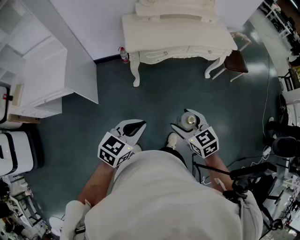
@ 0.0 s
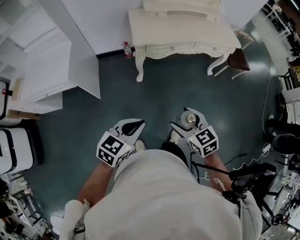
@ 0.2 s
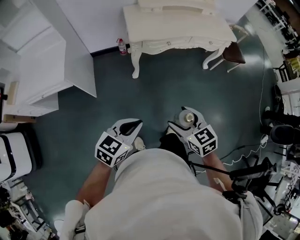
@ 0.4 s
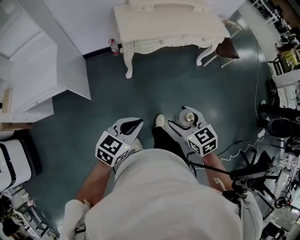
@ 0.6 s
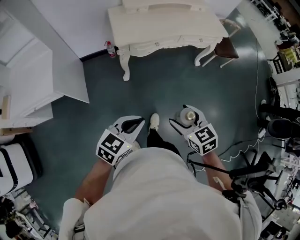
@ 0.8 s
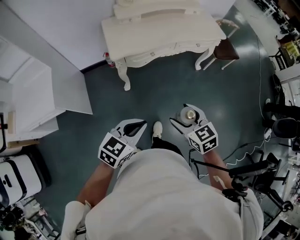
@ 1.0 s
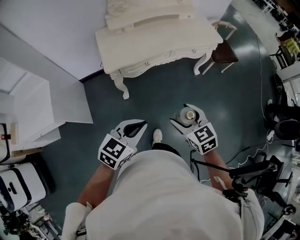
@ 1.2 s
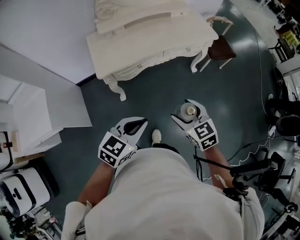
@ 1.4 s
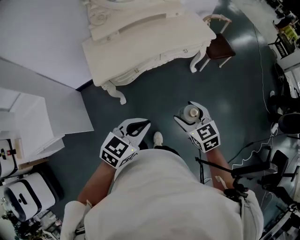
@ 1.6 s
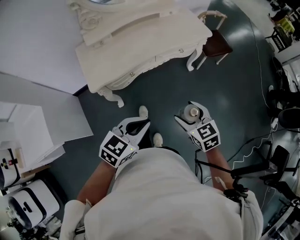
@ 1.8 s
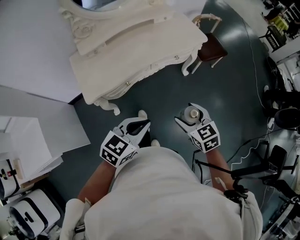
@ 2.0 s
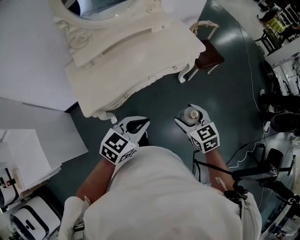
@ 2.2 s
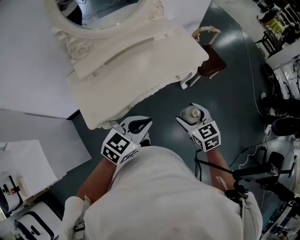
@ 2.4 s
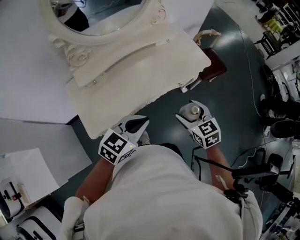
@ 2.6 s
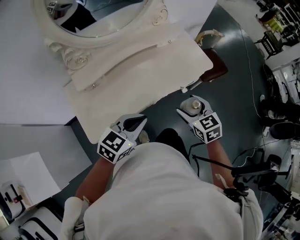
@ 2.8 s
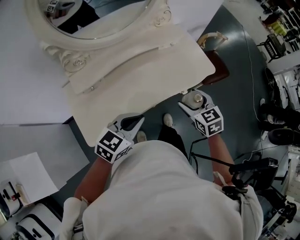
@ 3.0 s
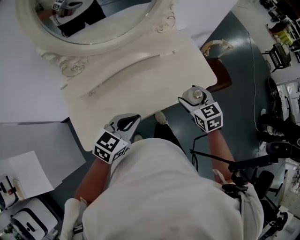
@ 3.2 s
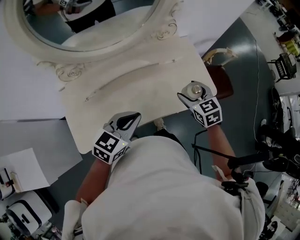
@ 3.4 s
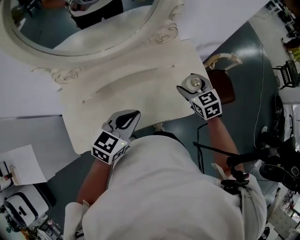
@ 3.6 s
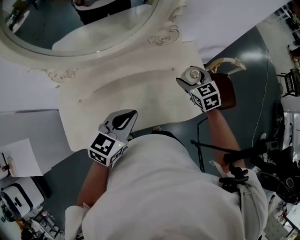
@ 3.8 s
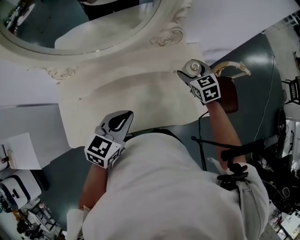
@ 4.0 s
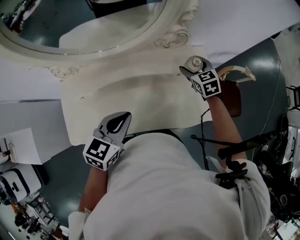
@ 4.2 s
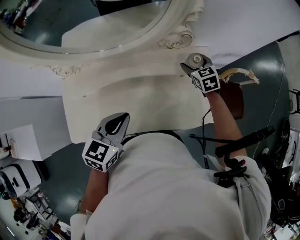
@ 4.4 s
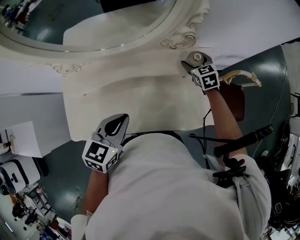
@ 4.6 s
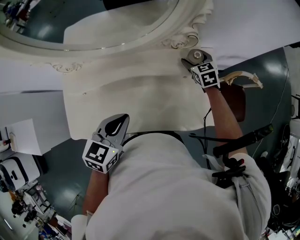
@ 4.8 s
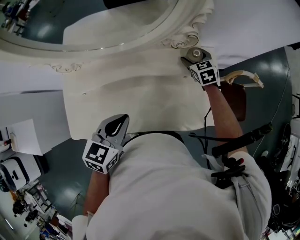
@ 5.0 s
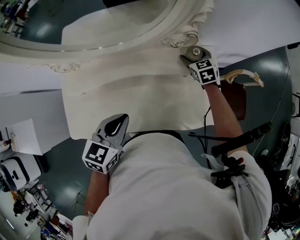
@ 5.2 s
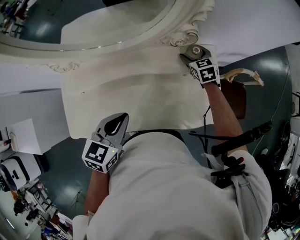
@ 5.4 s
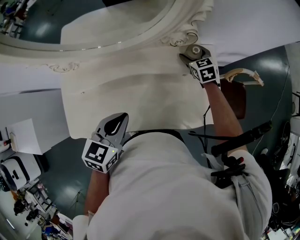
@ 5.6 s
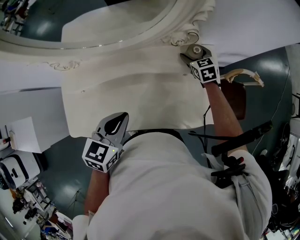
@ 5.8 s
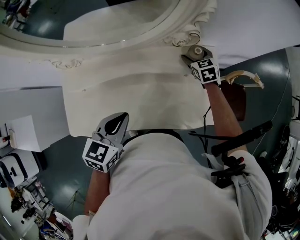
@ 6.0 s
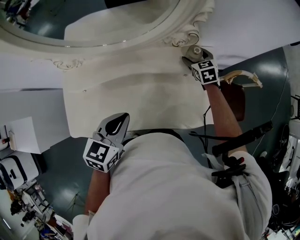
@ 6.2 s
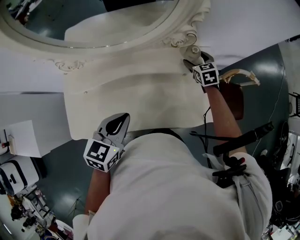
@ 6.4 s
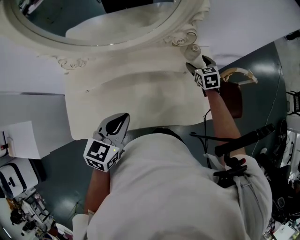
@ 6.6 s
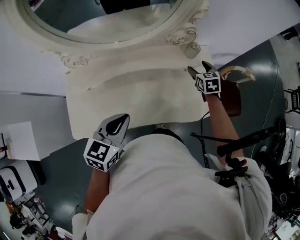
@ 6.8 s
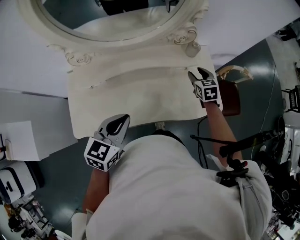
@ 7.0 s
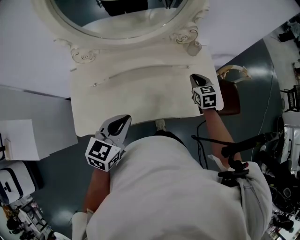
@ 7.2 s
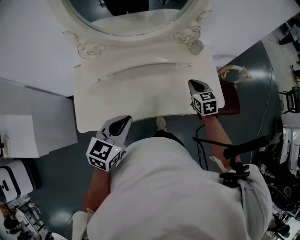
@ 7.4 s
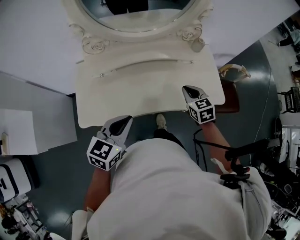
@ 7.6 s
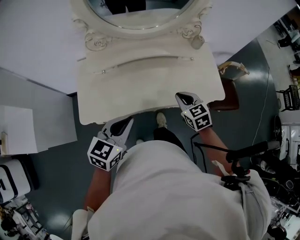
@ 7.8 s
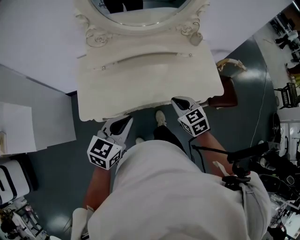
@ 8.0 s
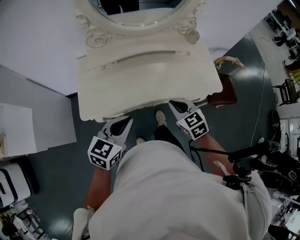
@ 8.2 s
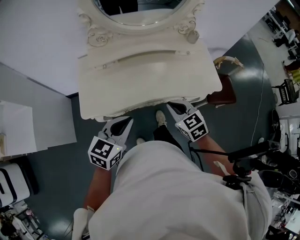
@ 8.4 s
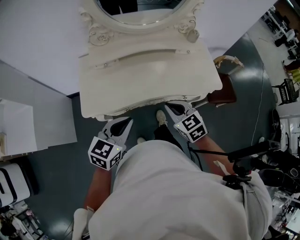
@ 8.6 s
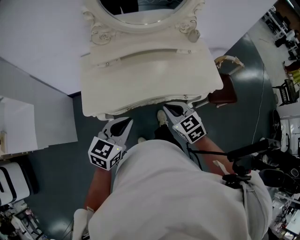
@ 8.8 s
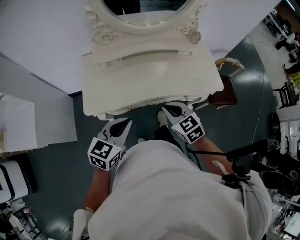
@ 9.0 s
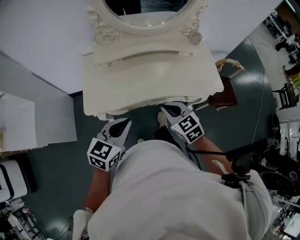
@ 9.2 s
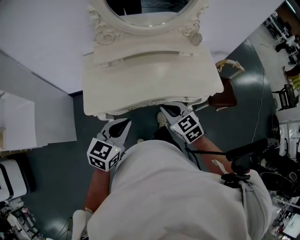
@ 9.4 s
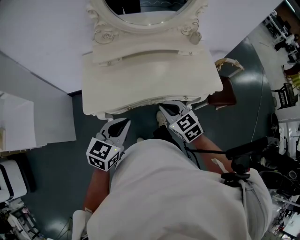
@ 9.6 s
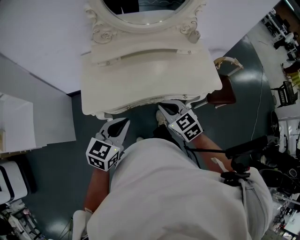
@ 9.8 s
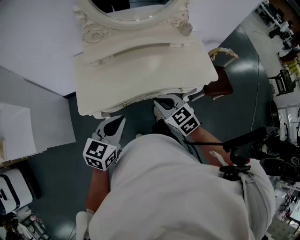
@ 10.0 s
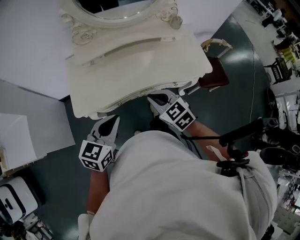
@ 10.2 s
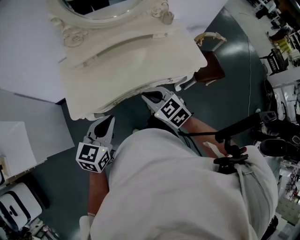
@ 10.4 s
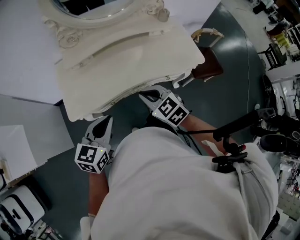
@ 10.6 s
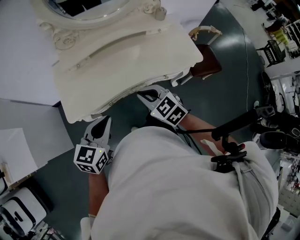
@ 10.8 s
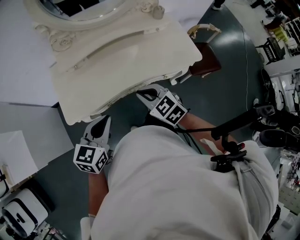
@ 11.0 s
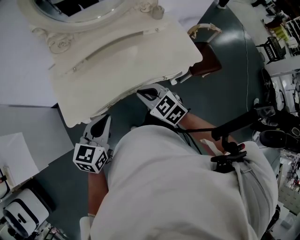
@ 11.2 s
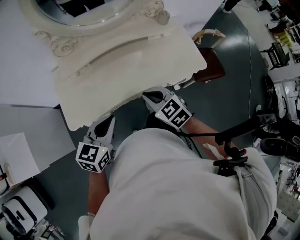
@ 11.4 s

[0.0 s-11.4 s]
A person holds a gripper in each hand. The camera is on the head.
0.0 to 1.4 s: Both grippers move forward and to the right, some 20 cm.
1.4 to 2.8 s: The grippers both shift forward by roughly 35 cm.
2.8 to 4.2 s: The right gripper shifts by approximately 50 cm, and changes its angle by approximately 20 degrees, while the left gripper shifts by about 25 cm, and turns by about 30 degrees.
4.2 to 5.6 s: The right gripper shifts approximately 10 cm forward and downward.
5.6 to 7.2 s: The right gripper travels backward by about 20 cm, and closes its fingers; the left gripper moves backward and to the left, roughly 15 cm.
7.2 to 8.6 s: The right gripper travels backward and to the left by some 40 cm, and turns by about 20 degrees. The left gripper shifts approximately 20 cm backward.
8.6 to 10.0 s: The grippers move only a little.
10.0 to 11.4 s: The grippers both shift forward by roughly 5 cm.

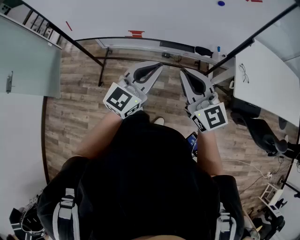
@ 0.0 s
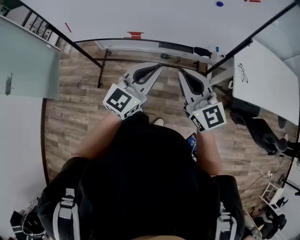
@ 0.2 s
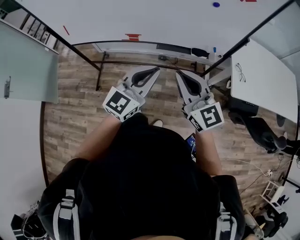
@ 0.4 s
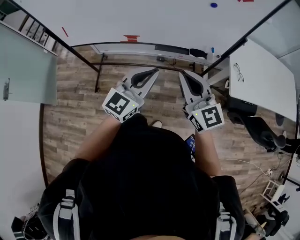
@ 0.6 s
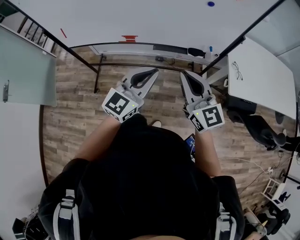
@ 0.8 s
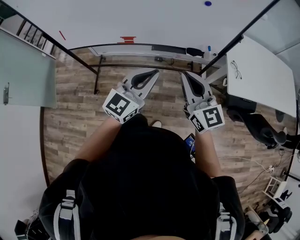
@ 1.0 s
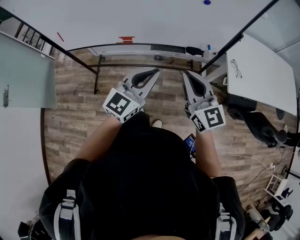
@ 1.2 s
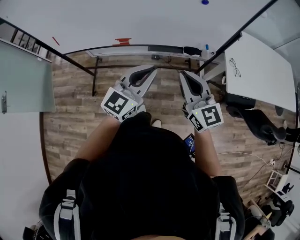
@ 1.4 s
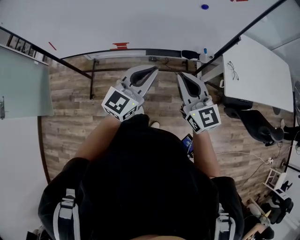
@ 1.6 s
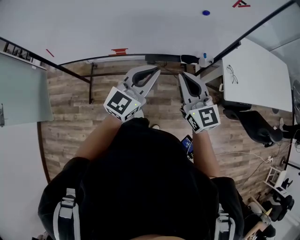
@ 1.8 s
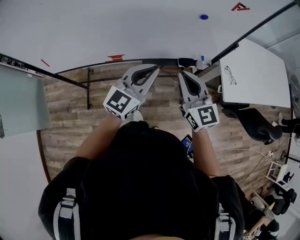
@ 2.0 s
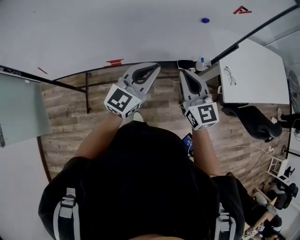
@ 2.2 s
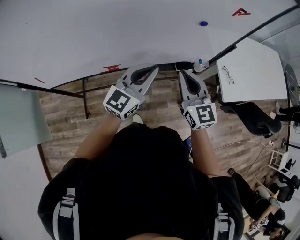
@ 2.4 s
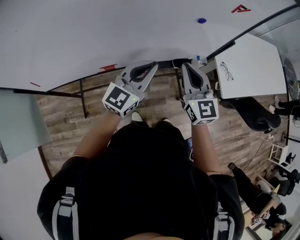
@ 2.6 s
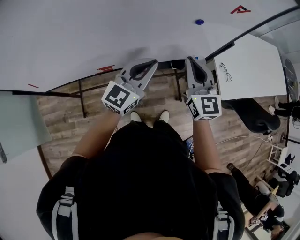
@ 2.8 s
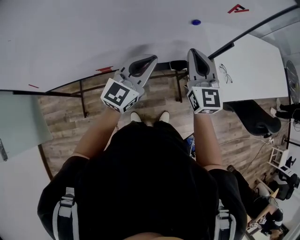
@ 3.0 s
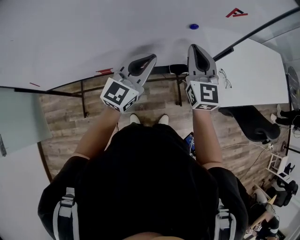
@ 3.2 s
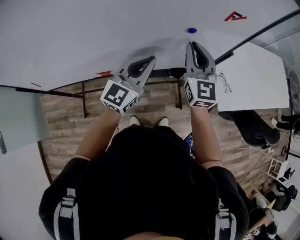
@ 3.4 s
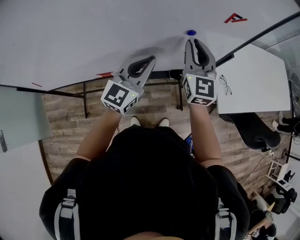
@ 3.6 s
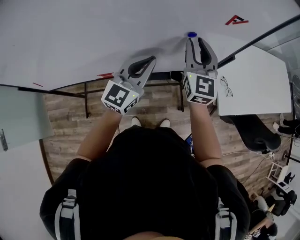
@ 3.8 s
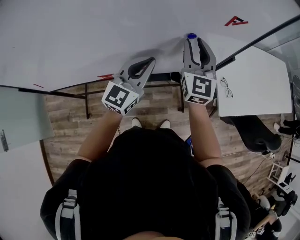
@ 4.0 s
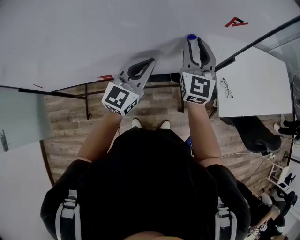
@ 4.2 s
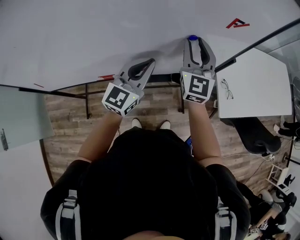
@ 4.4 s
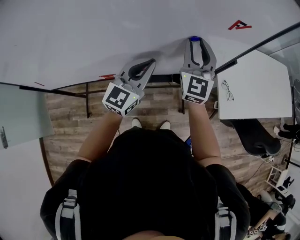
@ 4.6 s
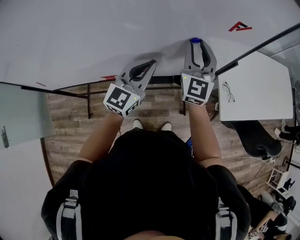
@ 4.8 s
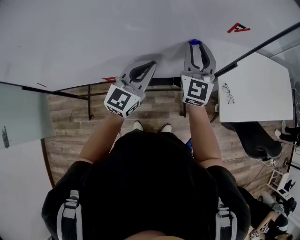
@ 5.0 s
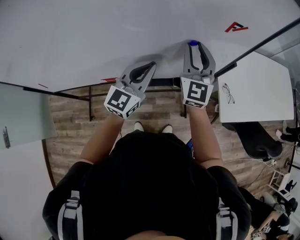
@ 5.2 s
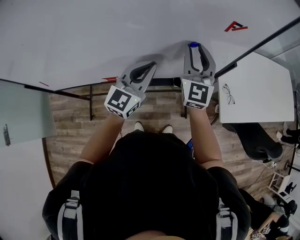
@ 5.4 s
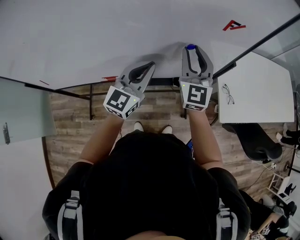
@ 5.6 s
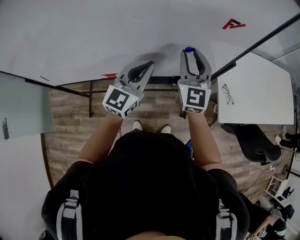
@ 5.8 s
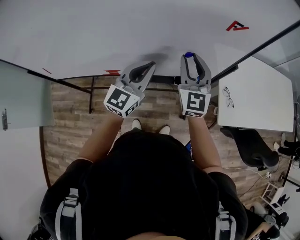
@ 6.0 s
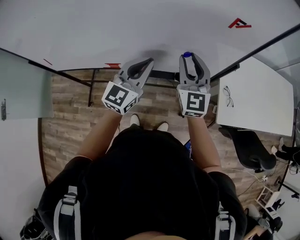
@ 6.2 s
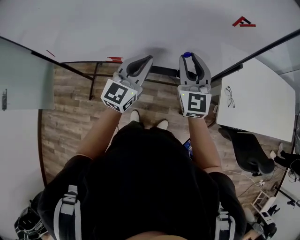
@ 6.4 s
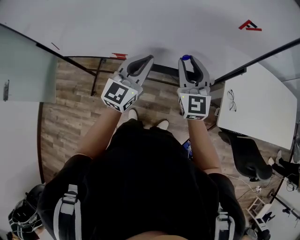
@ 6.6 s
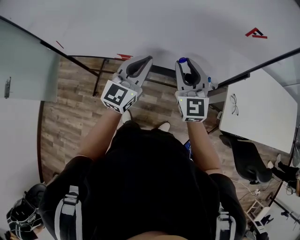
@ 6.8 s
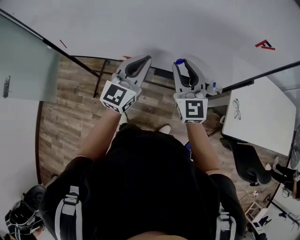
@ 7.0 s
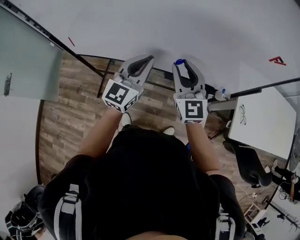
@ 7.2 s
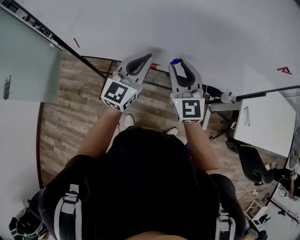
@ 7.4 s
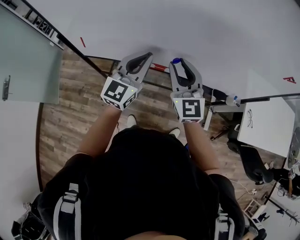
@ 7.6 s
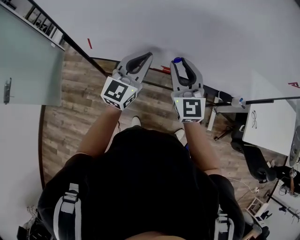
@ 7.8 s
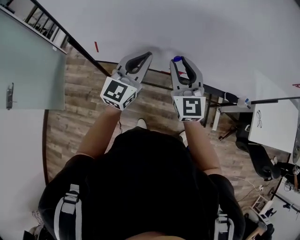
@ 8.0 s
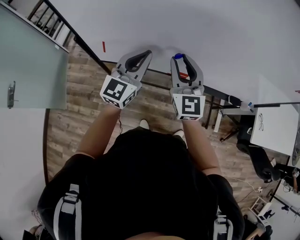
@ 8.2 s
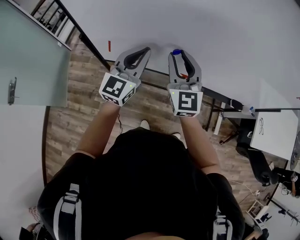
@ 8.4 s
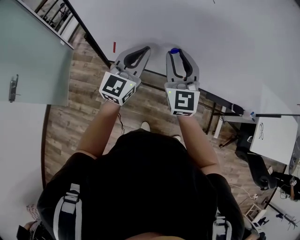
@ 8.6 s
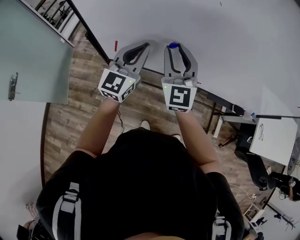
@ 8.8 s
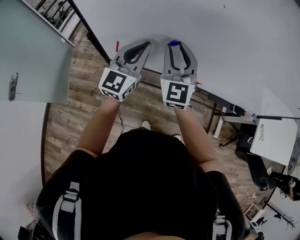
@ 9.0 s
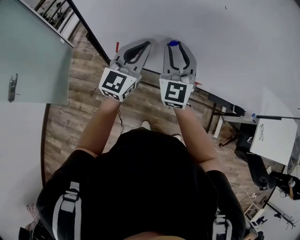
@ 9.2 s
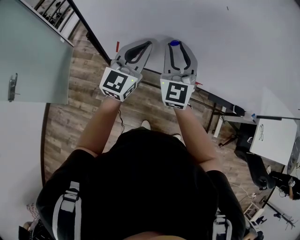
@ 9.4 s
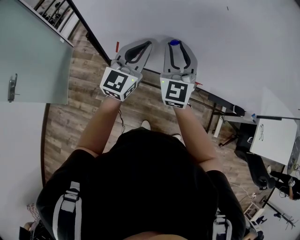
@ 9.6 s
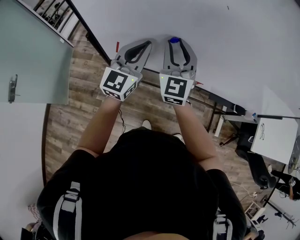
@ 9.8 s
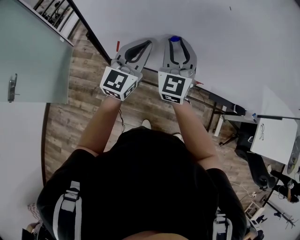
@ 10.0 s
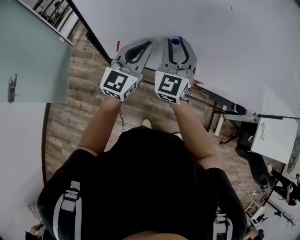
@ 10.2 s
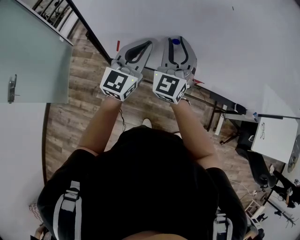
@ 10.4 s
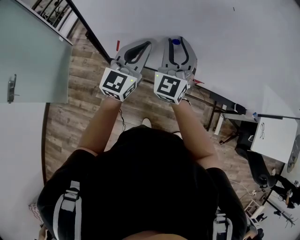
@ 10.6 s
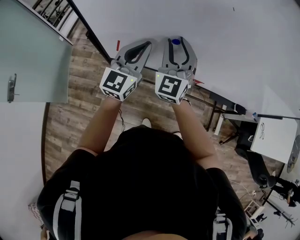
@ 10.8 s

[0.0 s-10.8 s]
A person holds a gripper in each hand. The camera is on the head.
0.0 to 1.6 s: Both grippers travel together forward, some 5 cm.
1.6 to 3.0 s: Both grippers travel together forward, roughly 20 cm. The right gripper swivels about 30 degrees.
3.0 to 4.6 s: The right gripper heads forward, covering some 10 cm, and opens up.
4.6 to 6.2 s: The right gripper moves backward, roughly 10 cm.
6.2 to 7.8 s: Both grippers move to the left, about 40 cm.
7.8 to 9.2 s: The grippers both shift to the left by roughly 20 cm.
9.2 to 10.8 s: The grippers stay close to where they were, moving slightly.

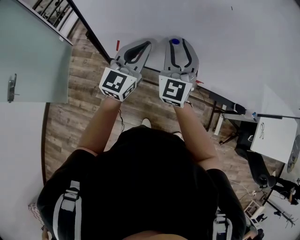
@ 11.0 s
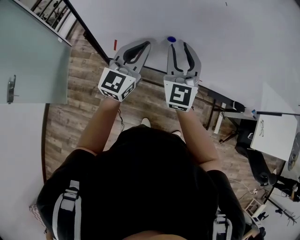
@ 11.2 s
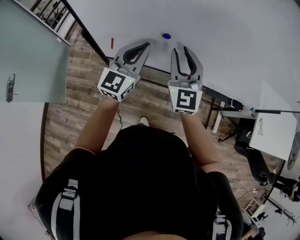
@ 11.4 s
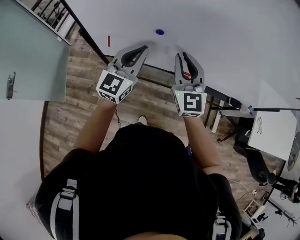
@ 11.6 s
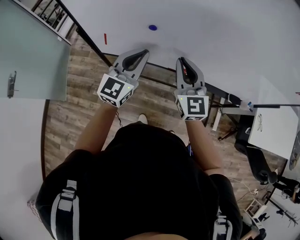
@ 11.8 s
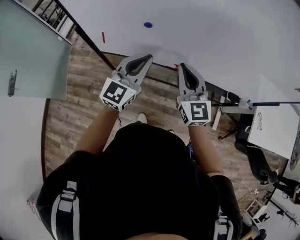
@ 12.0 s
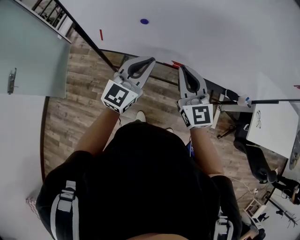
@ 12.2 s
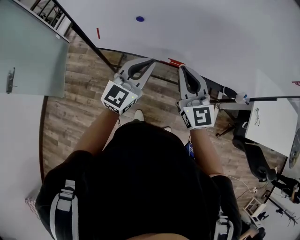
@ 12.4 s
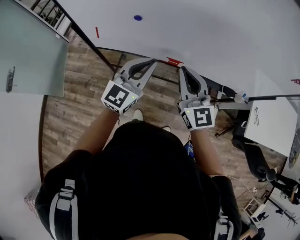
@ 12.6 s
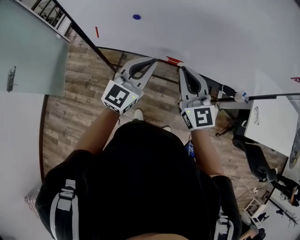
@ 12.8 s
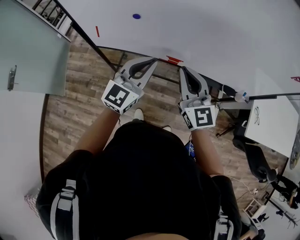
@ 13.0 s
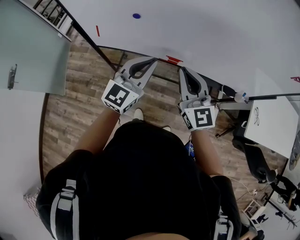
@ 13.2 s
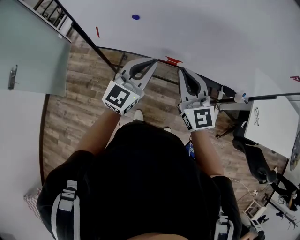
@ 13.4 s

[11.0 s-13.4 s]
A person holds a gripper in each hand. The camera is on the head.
11.0 to 12.2 s: The two grippers go roughly 20 cm to the right and backward. The right gripper rotates some 30 degrees, and closes its fingers.
12.2 to 13.4 s: The left gripper moves to the right, approximately 5 cm; the right gripper moves some 5 cm.
